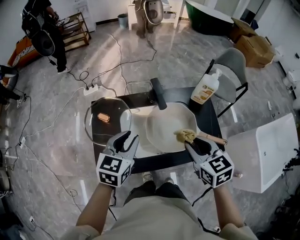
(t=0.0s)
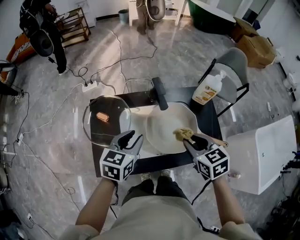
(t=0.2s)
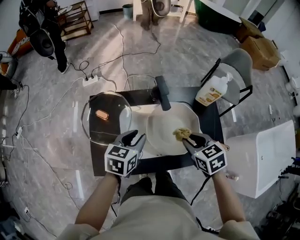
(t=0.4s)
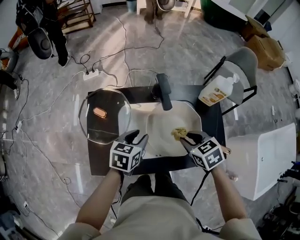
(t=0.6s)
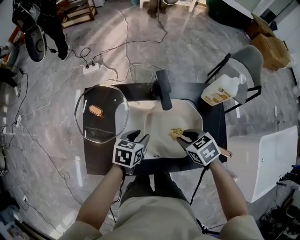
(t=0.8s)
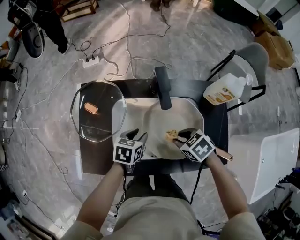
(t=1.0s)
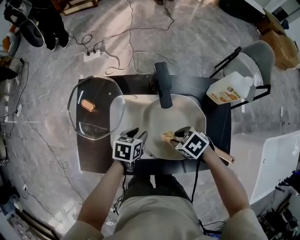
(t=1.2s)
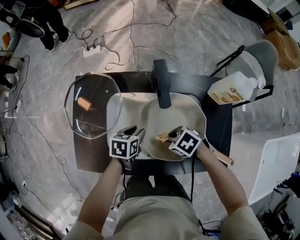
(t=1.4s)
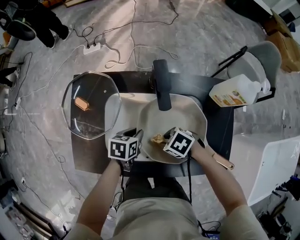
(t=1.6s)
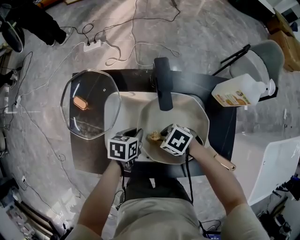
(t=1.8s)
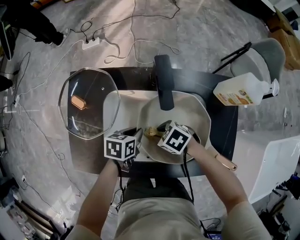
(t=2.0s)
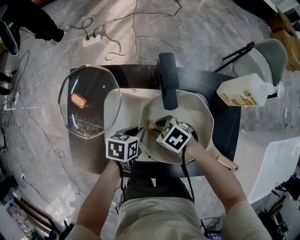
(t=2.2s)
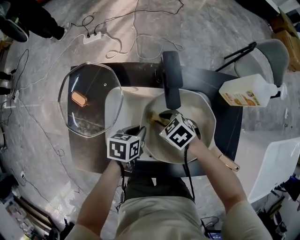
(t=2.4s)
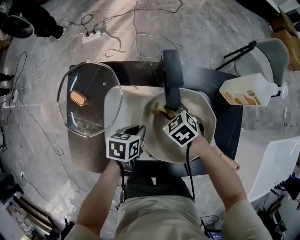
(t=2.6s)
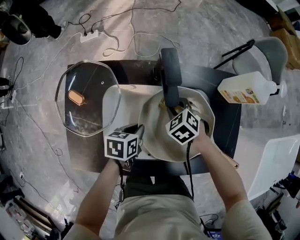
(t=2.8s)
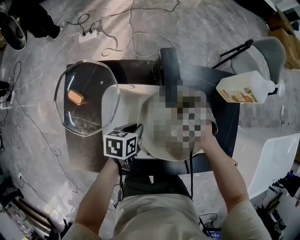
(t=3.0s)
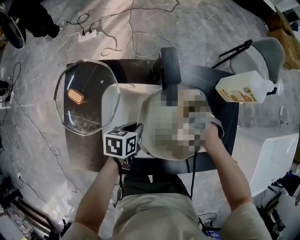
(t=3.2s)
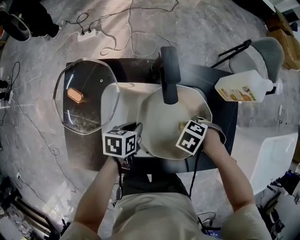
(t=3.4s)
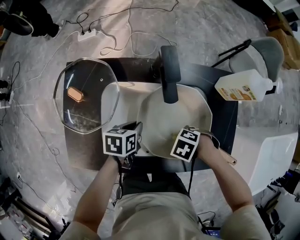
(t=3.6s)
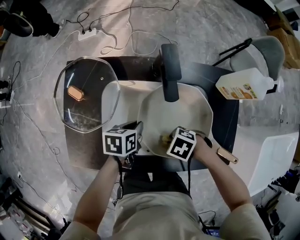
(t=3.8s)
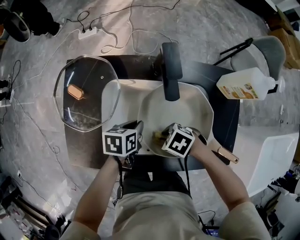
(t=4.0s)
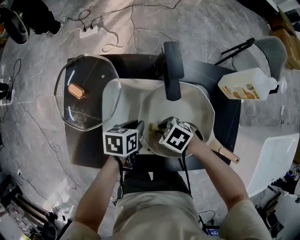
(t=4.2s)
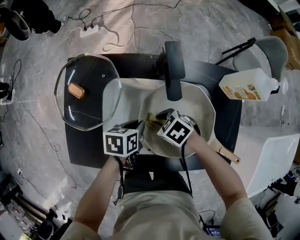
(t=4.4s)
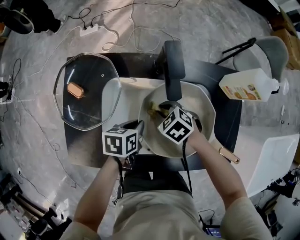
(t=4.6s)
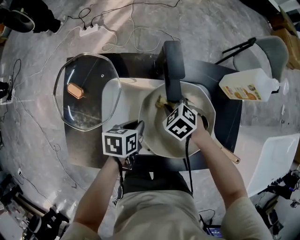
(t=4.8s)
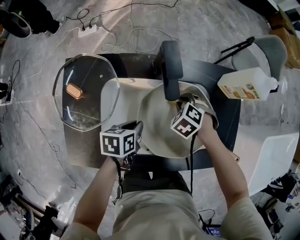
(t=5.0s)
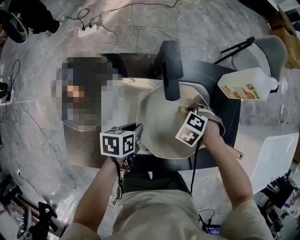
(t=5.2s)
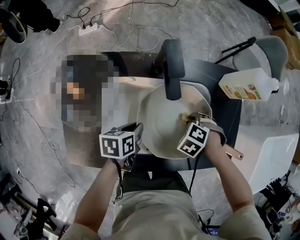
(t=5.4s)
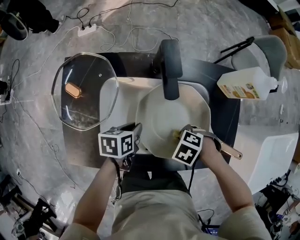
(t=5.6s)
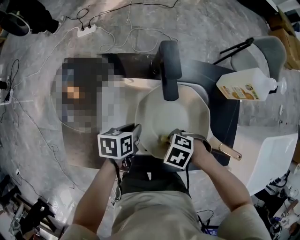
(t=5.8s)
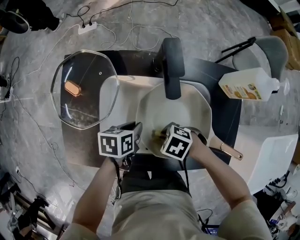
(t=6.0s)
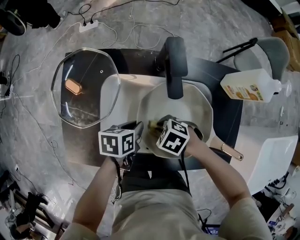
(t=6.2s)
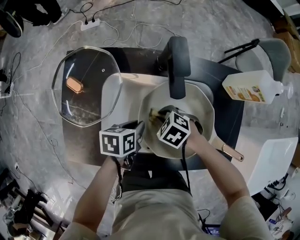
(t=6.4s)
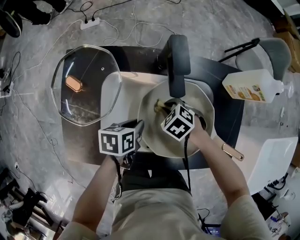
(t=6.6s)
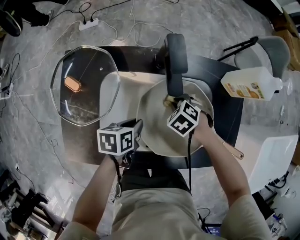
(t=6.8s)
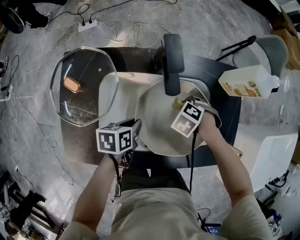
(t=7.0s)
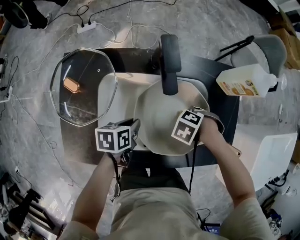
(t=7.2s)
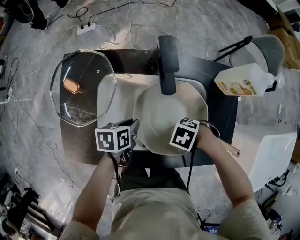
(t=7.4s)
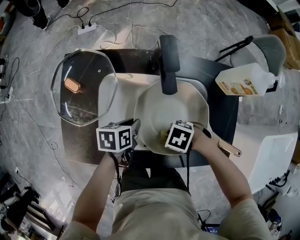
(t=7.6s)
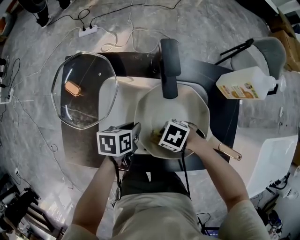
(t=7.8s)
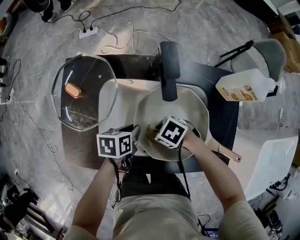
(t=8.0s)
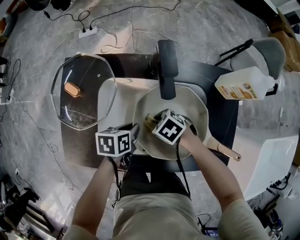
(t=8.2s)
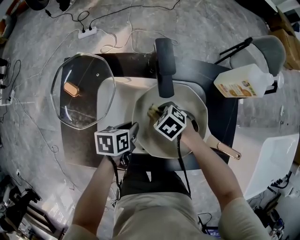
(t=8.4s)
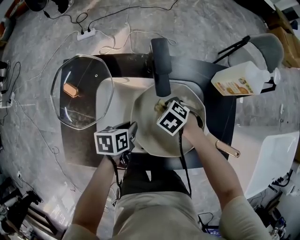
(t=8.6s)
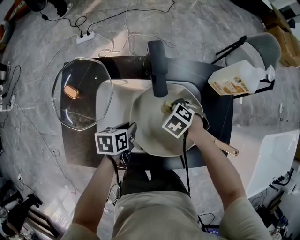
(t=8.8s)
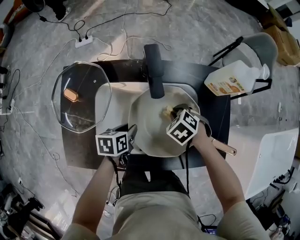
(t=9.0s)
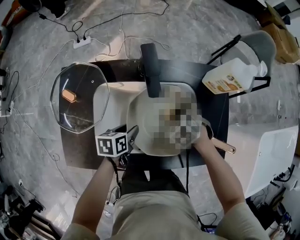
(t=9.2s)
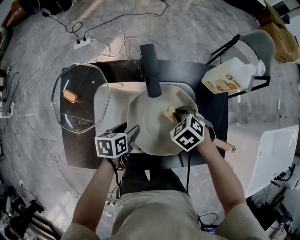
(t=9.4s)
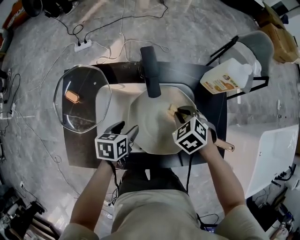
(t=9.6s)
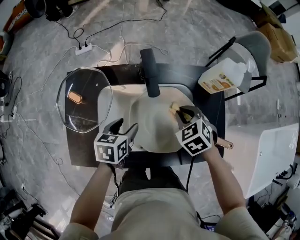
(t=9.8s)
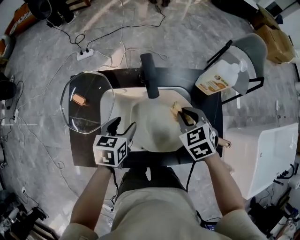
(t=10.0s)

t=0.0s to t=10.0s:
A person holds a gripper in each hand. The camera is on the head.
t=0.0s to t=1.4s: Both grippers move downward, about 30 cm. The right gripper points its fingers about 30 degrees further downward; the left gripper changes its angle by roughly 40 degrees.
t=1.4s to t=2.8s: The left gripper closes its fingers. The right gripper shifts by approximately 15 cm, and rotates roughly 30 degrees.
t=2.8s to t=4.2s: The right gripper shifts by roughly 15 cm, and changes its angle by roughly 30 degrees.
t=5.8s to t=7.2s: The right gripper shifts by approximately 10 cm.
t=7.2s to t=8.6s: The right gripper changes place by about 10 cm, and turns by approximately 30 degrees.
t=8.6s to t=10.0s: The left gripper goes about 10 cm upward, rotates roughly 30 degrees, and opens its fingers; the right gripper moves upward, about 20 cm, and turns by about 30 degrees.

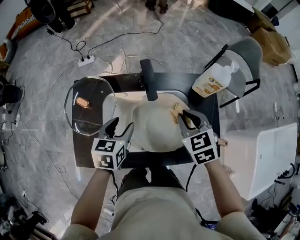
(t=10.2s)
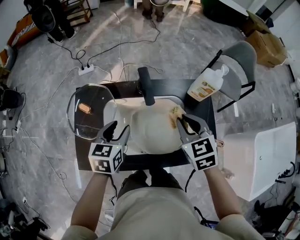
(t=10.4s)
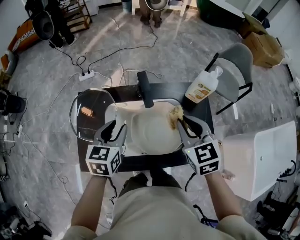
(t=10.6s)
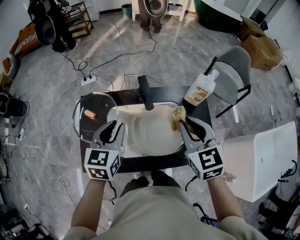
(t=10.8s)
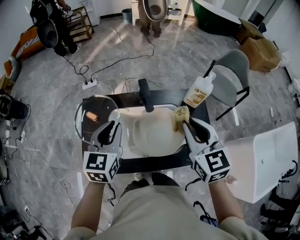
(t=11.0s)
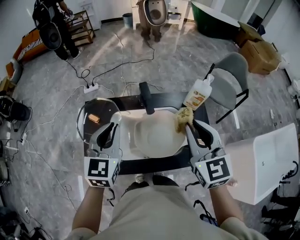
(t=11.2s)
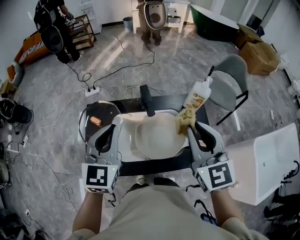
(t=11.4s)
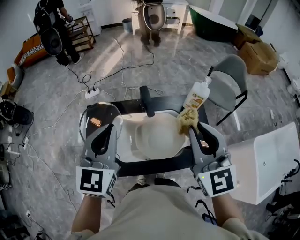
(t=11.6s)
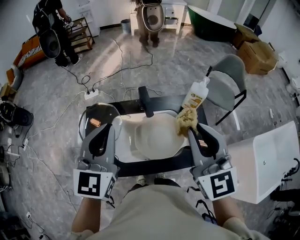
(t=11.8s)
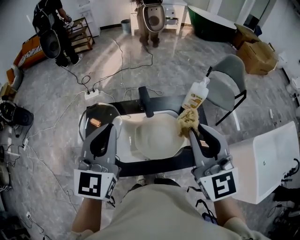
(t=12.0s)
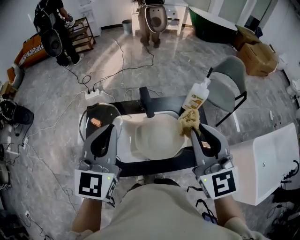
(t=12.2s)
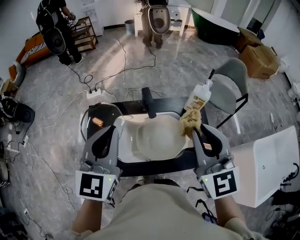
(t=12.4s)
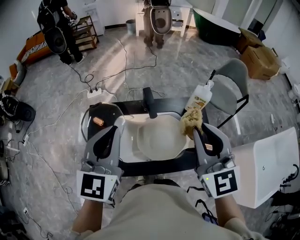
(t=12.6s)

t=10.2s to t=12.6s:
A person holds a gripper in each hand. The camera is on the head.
t=10.2s to t=11.4s: The grippers both shift upward by approximately 25 cm. The left gripper changes its angle by roughly 40 degrees, and closes up, while the right gripper tips its fingers upward by some 30 degrees.
t=11.4s to t=12.6s: The left gripper goes approximately 5 cm upward.

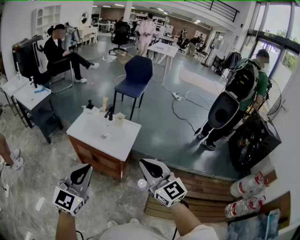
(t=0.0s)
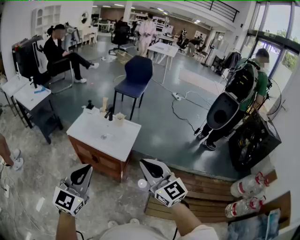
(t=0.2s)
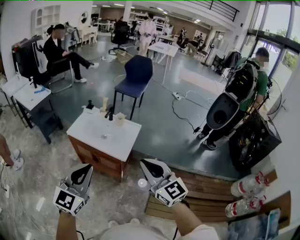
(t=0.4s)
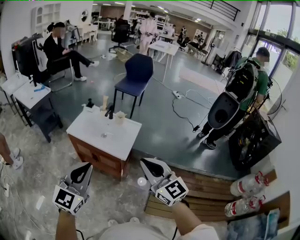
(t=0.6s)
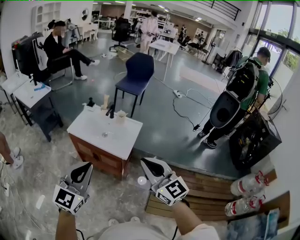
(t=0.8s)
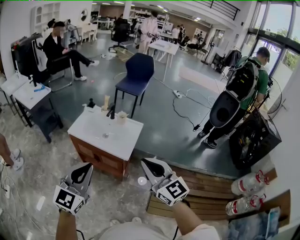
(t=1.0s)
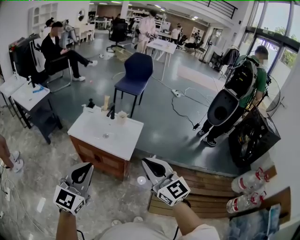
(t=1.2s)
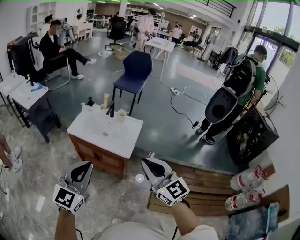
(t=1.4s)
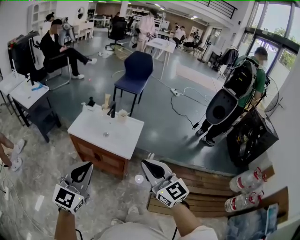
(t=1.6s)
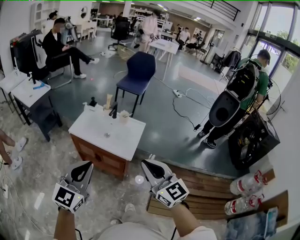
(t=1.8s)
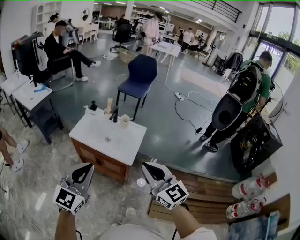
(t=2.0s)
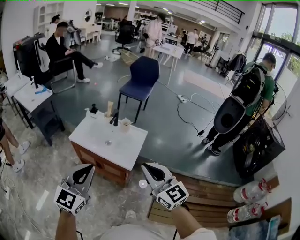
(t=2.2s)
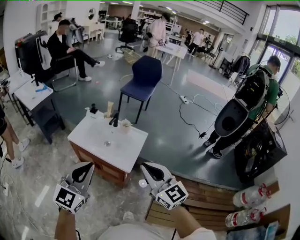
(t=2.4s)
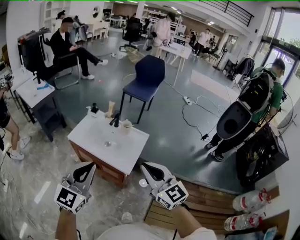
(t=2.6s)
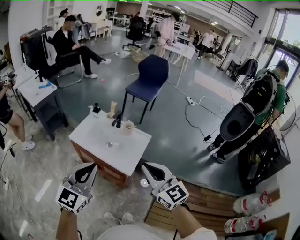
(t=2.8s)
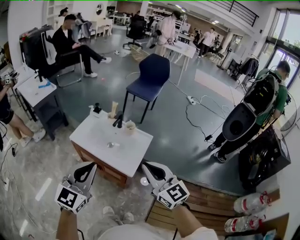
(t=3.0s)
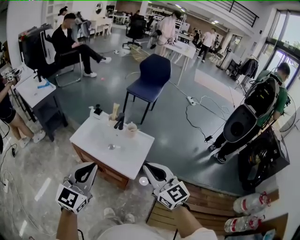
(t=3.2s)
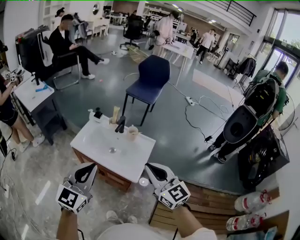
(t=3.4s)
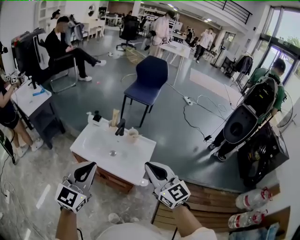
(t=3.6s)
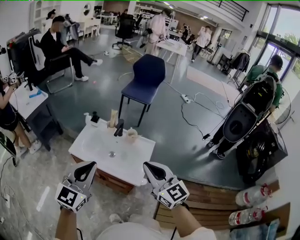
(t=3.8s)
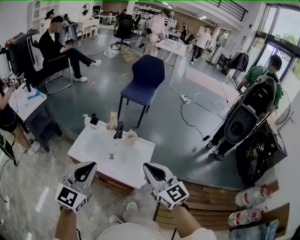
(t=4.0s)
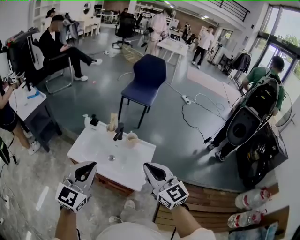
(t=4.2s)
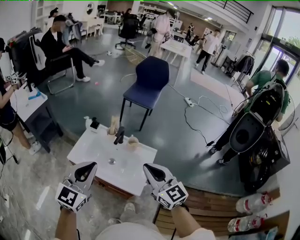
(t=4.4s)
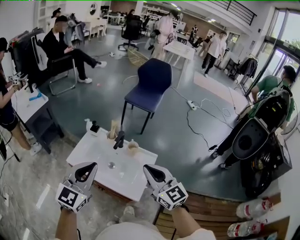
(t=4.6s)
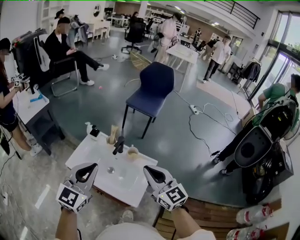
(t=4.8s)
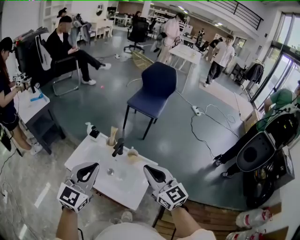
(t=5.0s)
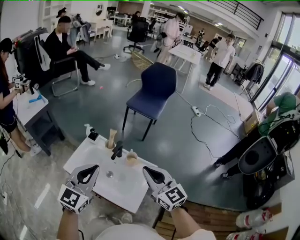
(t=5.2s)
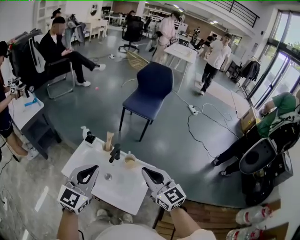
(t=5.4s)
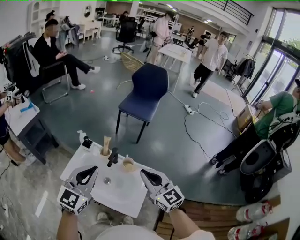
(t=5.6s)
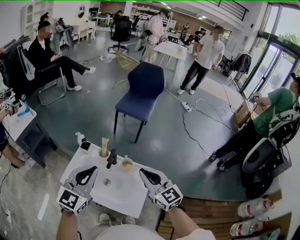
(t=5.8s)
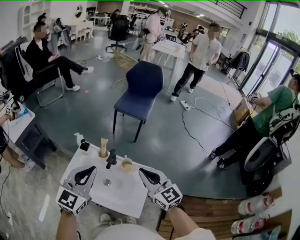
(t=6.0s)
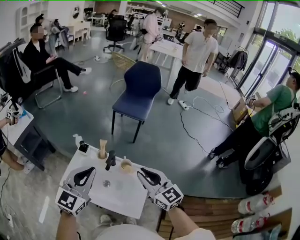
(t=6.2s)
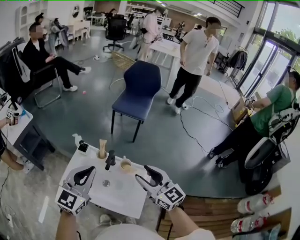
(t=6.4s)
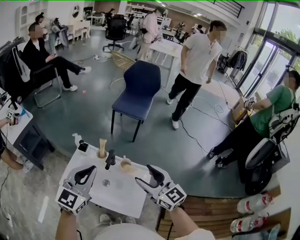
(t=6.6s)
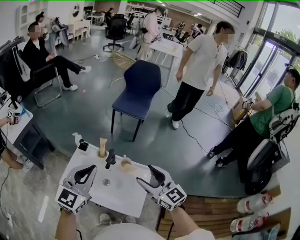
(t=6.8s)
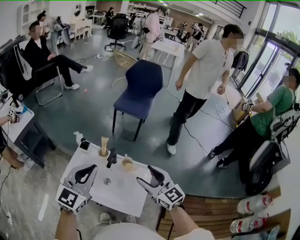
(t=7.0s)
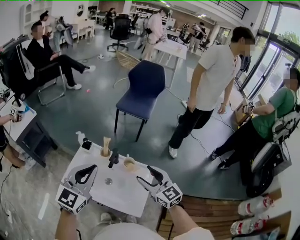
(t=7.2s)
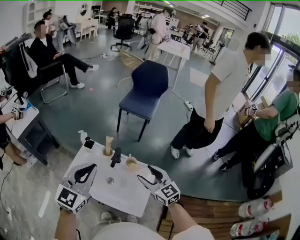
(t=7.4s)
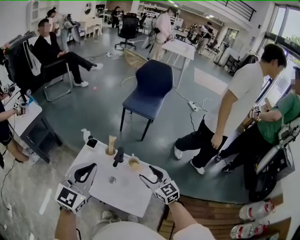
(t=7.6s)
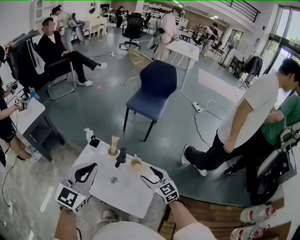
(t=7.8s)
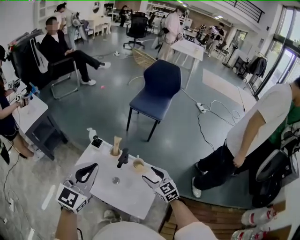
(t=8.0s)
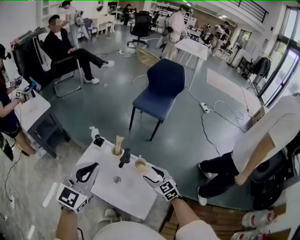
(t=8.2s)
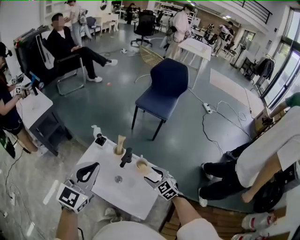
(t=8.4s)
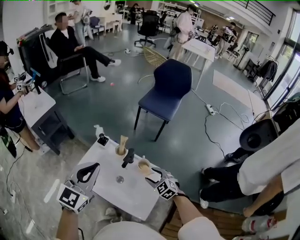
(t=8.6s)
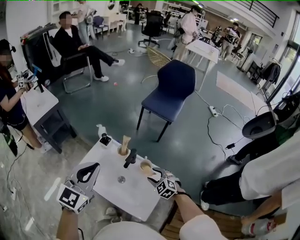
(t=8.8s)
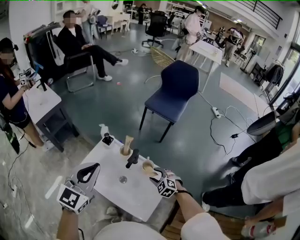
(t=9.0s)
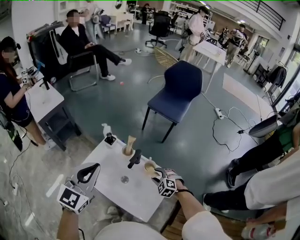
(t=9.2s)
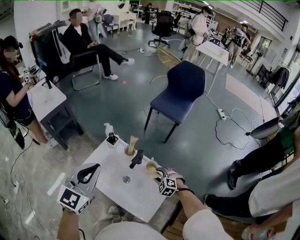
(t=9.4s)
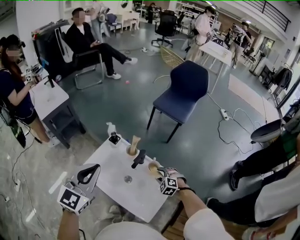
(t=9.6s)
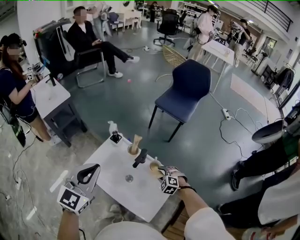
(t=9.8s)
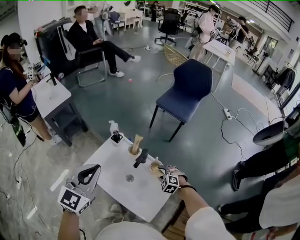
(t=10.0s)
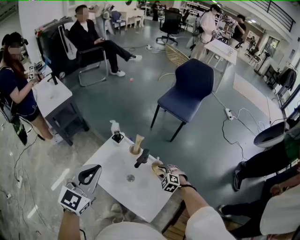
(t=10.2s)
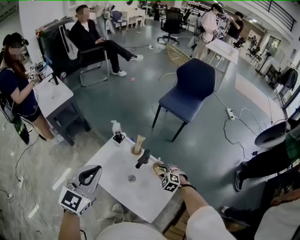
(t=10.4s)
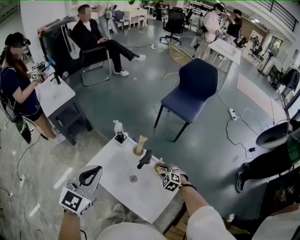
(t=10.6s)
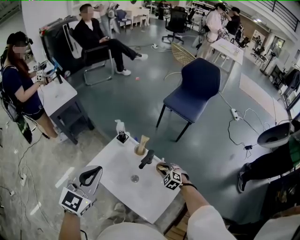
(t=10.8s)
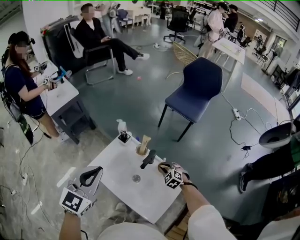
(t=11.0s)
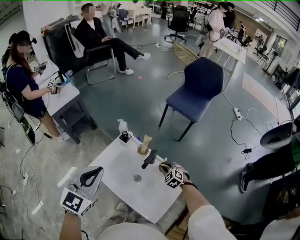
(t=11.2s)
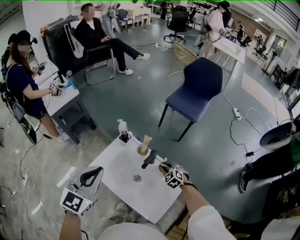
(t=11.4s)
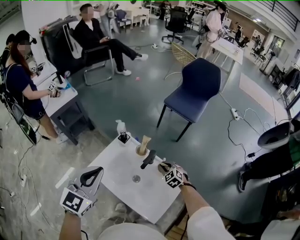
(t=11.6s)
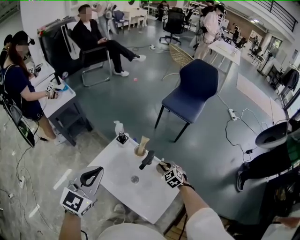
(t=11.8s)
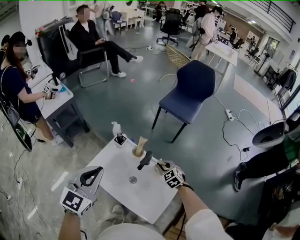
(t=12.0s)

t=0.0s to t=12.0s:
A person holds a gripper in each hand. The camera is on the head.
t=0.0s to t=1.6s: Both grippers move to the left, some 5 cm.
t=1.6s to t=3.0s: Both grippers move forward, approximately 15 cm.
t=3.0s to t=4.4s: The two grippers go some 15 cm forward.
t=4.4s to t=6.0s: Both grippers move forward, about 15 cm.
t=6.0s to t=7.6s: The right gripper moves downward, roughly 10 cm, and opens its fingers.
t=7.6s to t=9.0s: The right gripper goes approximately 20 cm downward, and angles its fingers downward, by some 30 degrees.
t=9.0s to t=10.4s: The right gripper changes place by approximately 5 cm.
t=10.4s to t=12.0s: The right gripper shifts approximately 5 cm upward, and turns by about 30 degrees.
